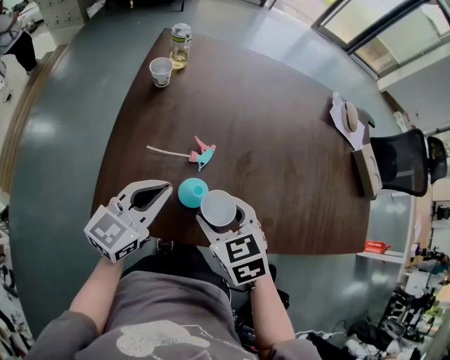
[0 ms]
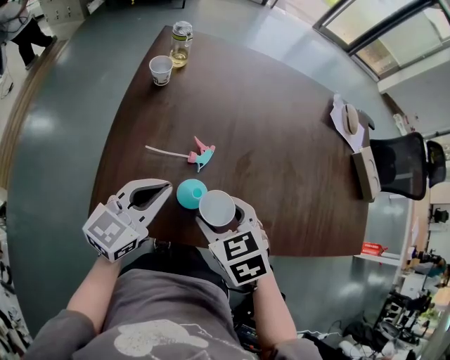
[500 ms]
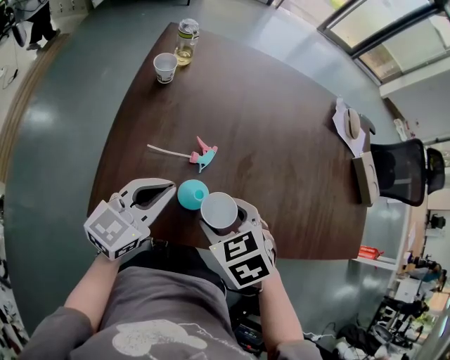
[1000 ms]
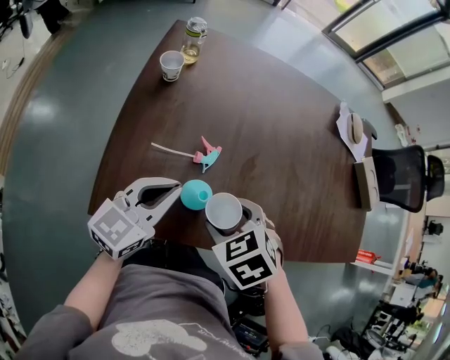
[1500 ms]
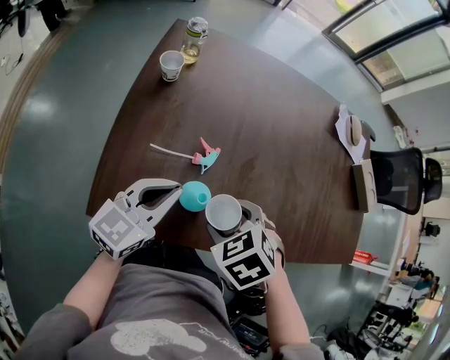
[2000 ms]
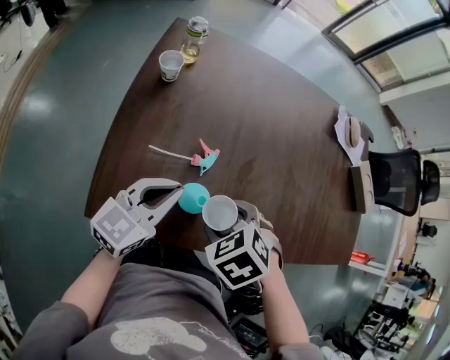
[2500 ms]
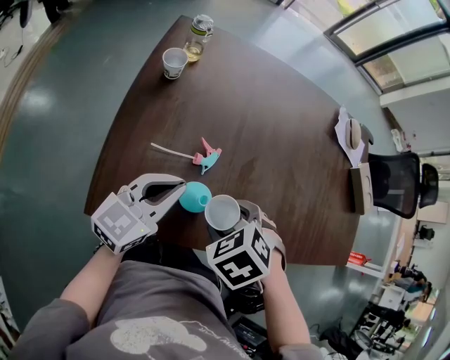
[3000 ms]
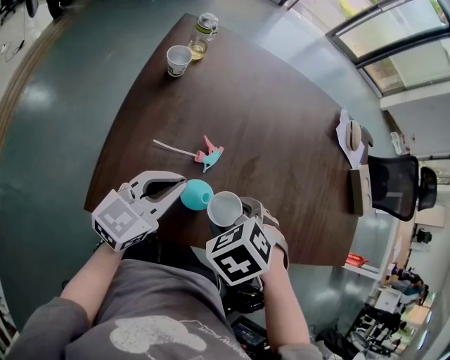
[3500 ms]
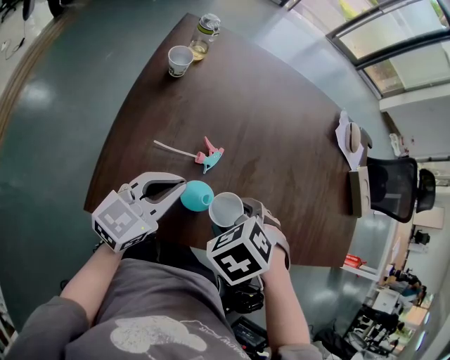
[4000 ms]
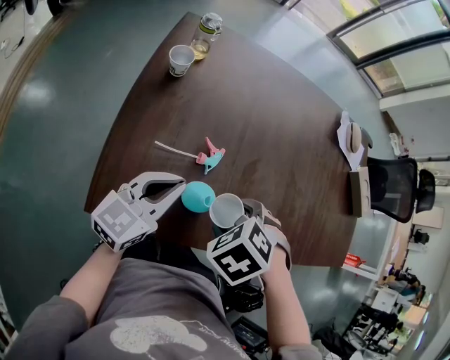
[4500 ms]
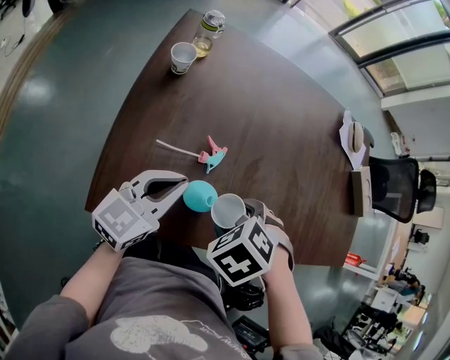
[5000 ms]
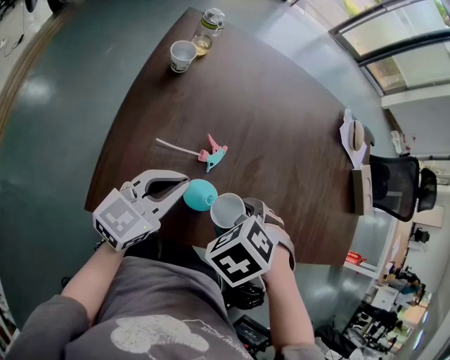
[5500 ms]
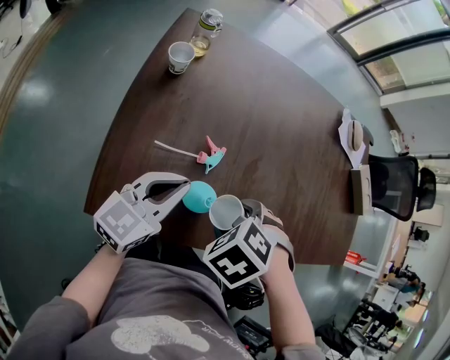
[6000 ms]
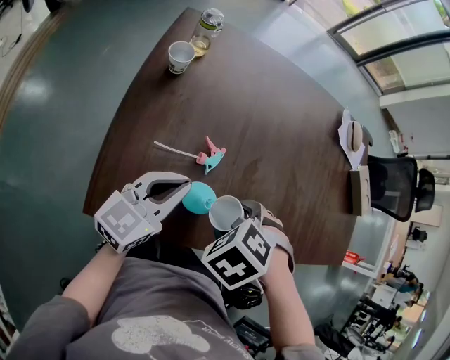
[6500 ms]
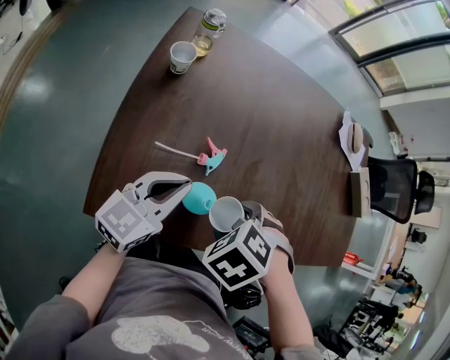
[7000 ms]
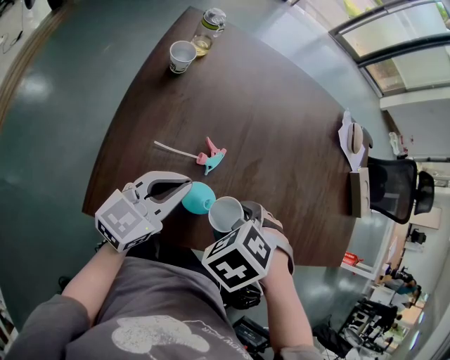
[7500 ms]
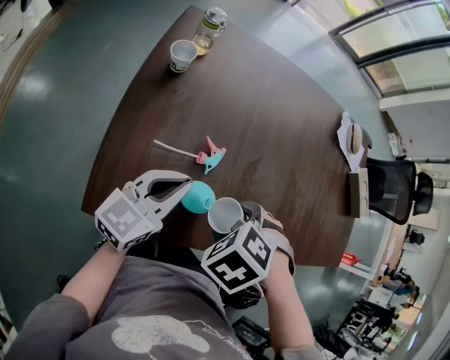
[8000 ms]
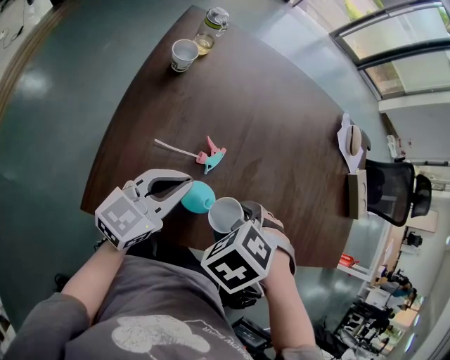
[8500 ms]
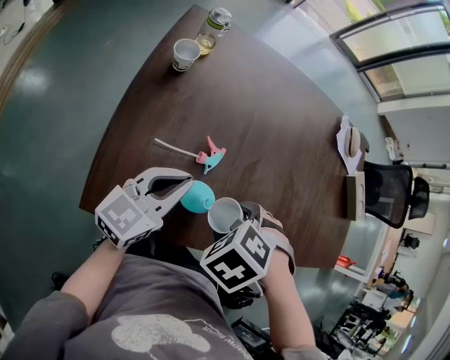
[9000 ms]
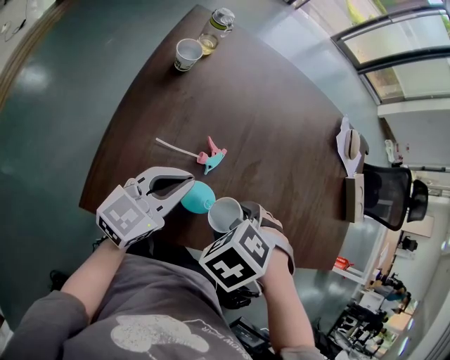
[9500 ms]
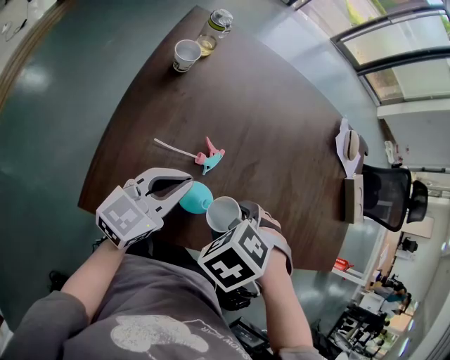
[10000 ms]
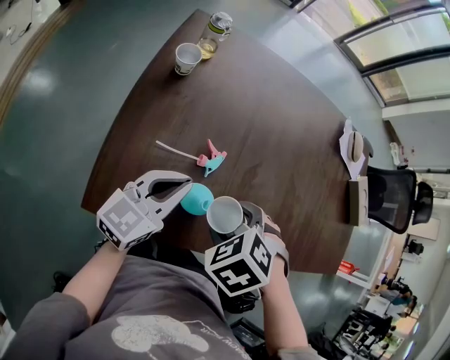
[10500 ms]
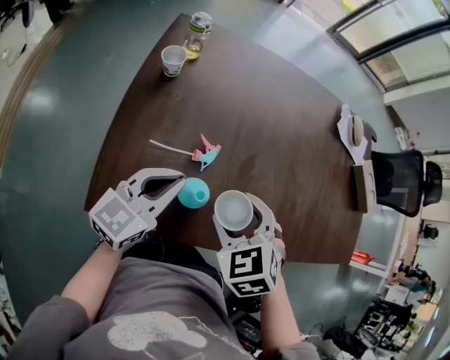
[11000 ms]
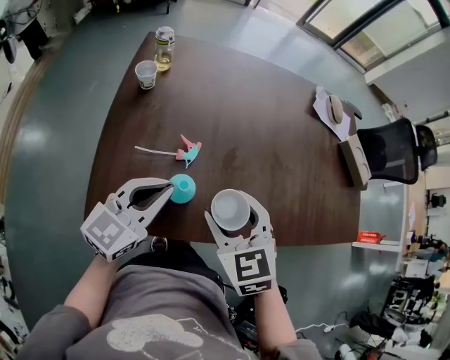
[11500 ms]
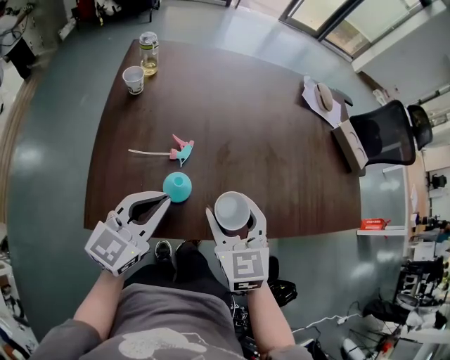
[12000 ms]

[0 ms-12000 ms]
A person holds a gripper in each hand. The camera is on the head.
0 ms to 2000 ms: The right gripper swivels some 30 degrees.
2000 ms to 4000 ms: The grippers make only small movements.
4000 ms to 6000 ms: There are only small adjustments of the grippers.
6000 ms to 8000 ms: Neither gripper changes place.
8000 ms to 10000 ms: The two grippers keep their place.
10000 ms to 12000 ms: The left gripper moves some 10 cm. Meanwhile the right gripper moves about 5 cm, and tips its fingers upward by about 60 degrees.

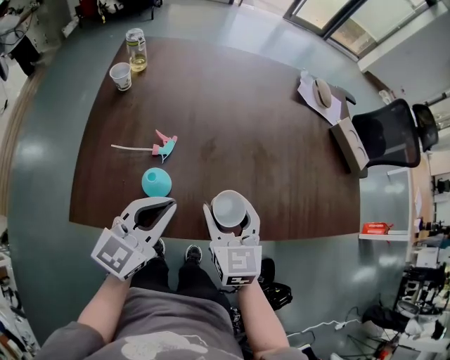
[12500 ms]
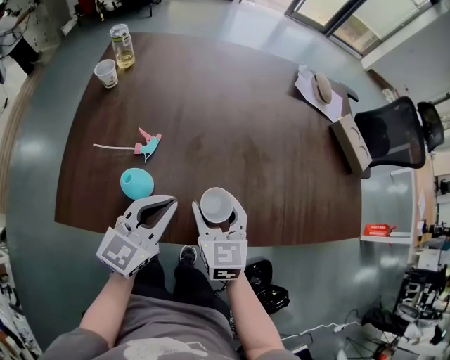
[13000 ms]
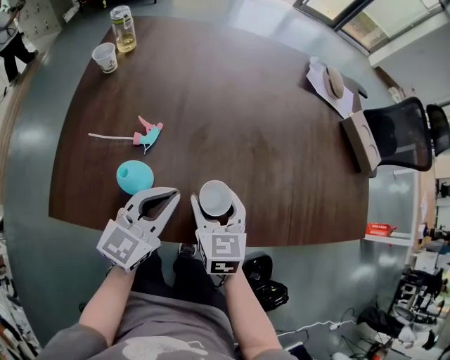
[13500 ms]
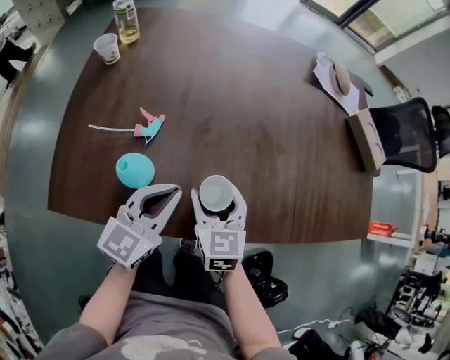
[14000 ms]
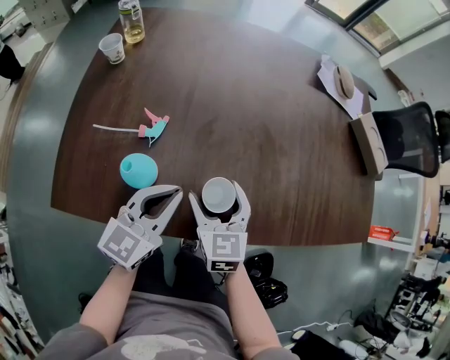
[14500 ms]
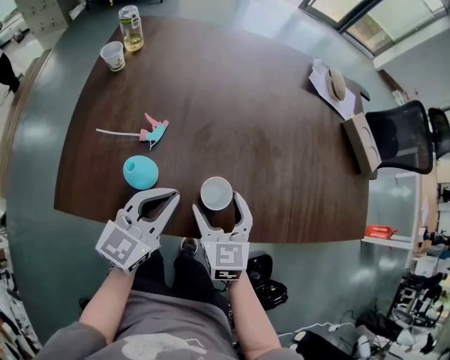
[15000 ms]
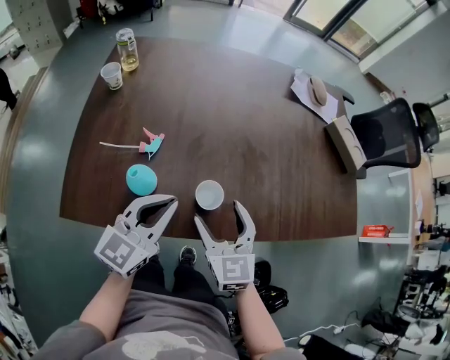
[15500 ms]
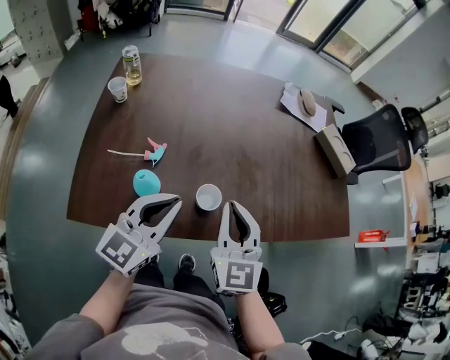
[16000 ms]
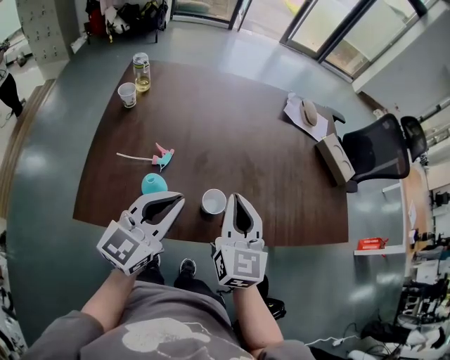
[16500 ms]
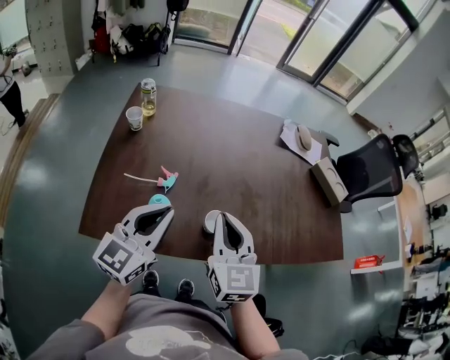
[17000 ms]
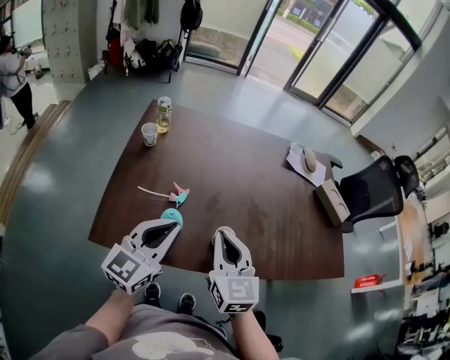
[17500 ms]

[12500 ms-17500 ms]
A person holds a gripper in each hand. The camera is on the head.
12500 ms to 15000 ms: Both grippers travel together downward, some 5 cm.
15000 ms to 17500 ms: The right gripper shifts about 20 cm upward, and closes. Meanwhile the left gripper heads upward and to the left, covering about 15 cm.

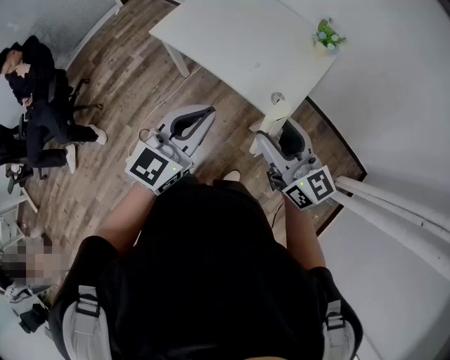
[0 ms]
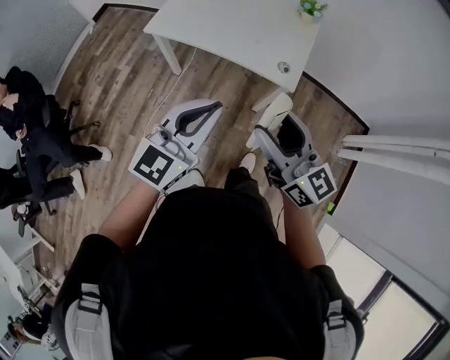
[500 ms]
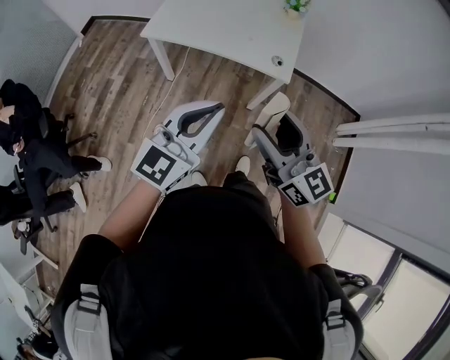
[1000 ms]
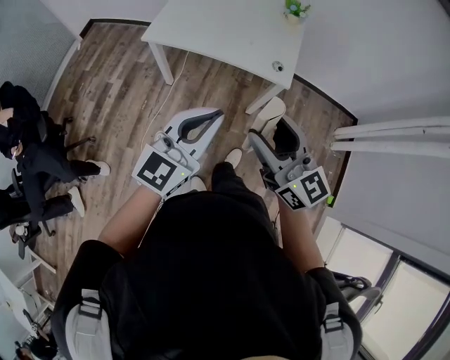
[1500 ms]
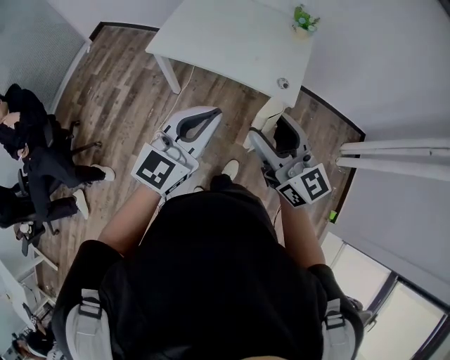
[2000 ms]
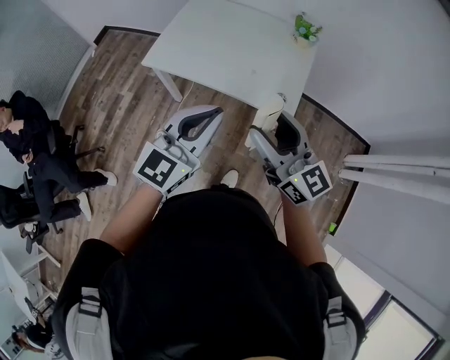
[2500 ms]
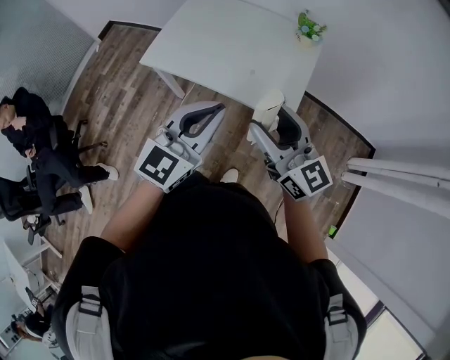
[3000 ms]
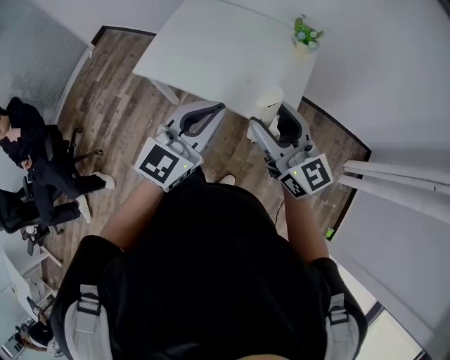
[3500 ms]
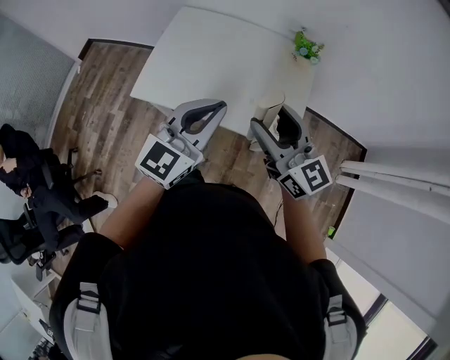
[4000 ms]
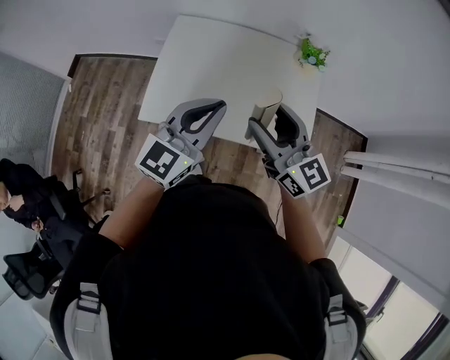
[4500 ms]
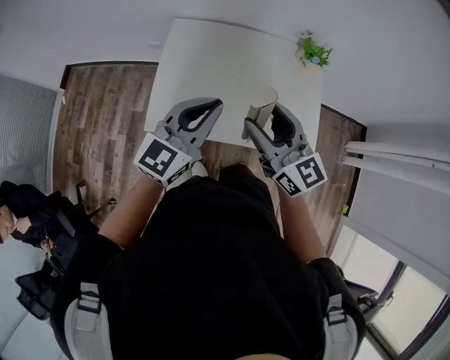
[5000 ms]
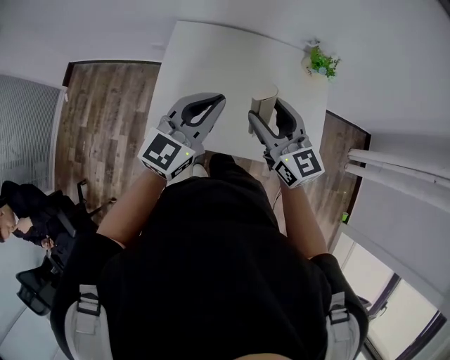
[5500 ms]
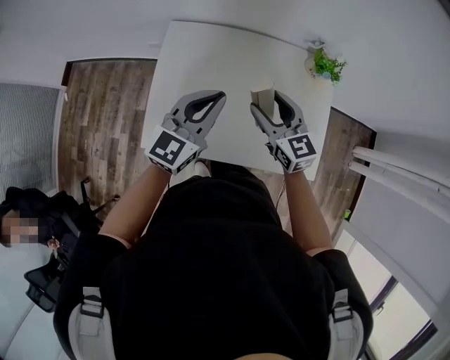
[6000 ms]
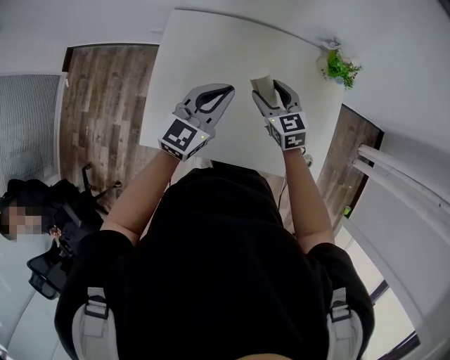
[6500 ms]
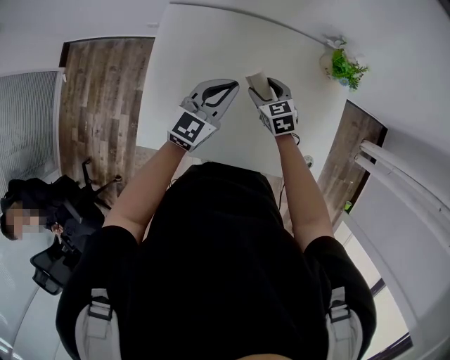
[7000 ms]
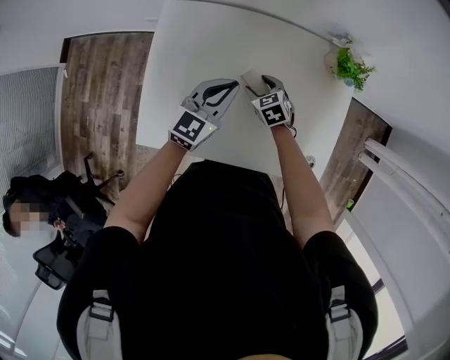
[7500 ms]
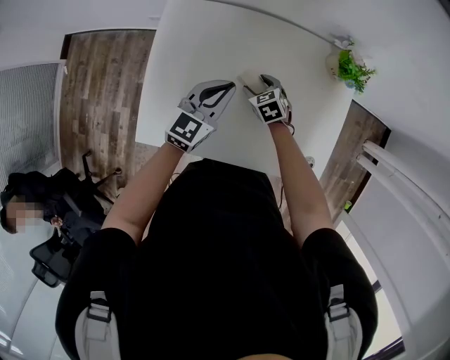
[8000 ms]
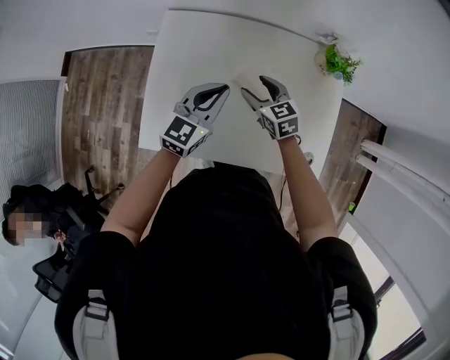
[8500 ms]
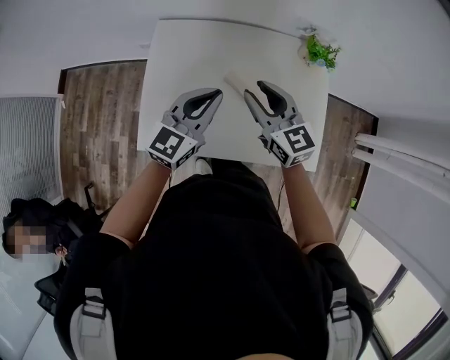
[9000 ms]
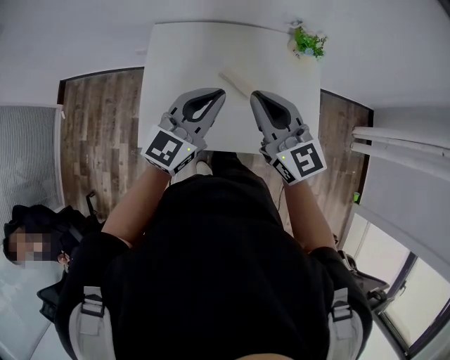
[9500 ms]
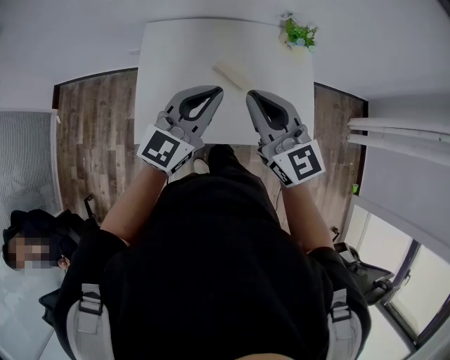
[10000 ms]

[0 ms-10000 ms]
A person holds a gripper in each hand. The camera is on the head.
0 ms to 2000 ms: Both grippers move to the left and backward, about 15 cm.
2000 ms to 4000 ms: The grippers both shift forward by some 30 cm.
4000 ms to 6000 ms: The right gripper heads forward, downward and to the left, covering about 35 cm, and changes its angle by approximately 20 degrees. The left gripper goes roughly 30 cm forward and to the left.
6000 ms to 8000 ms: The left gripper travels downward and forward by about 20 cm. Meanwhile the right gripper is displaced downward by roughly 30 cm, and points its fingers some 40 degrees further downward.
8000 ms to 10000 ms: The left gripper heads upward and backward, covering about 25 cm; the right gripper shifts about 50 cm upward and backward, tips its fingers upward by roughly 50 degrees, and closes.
